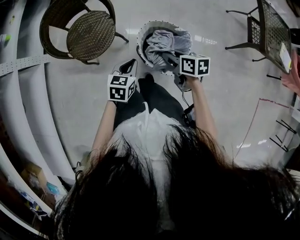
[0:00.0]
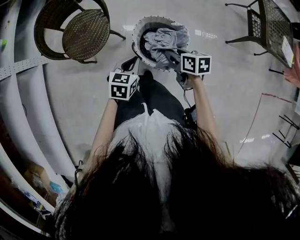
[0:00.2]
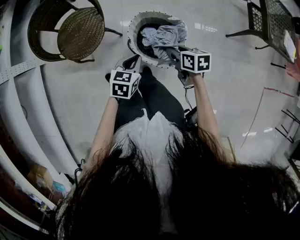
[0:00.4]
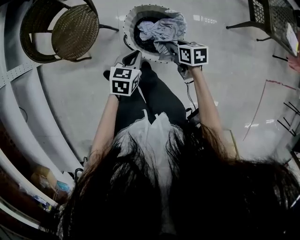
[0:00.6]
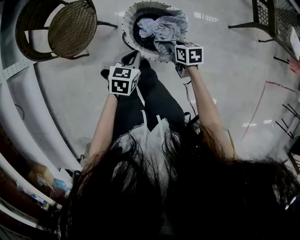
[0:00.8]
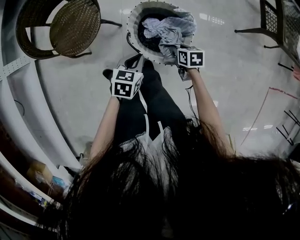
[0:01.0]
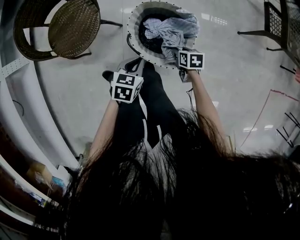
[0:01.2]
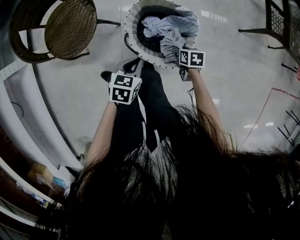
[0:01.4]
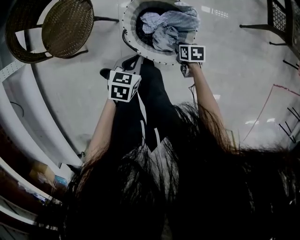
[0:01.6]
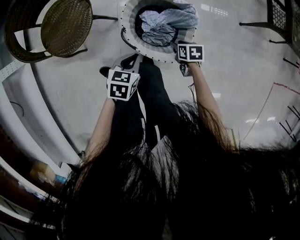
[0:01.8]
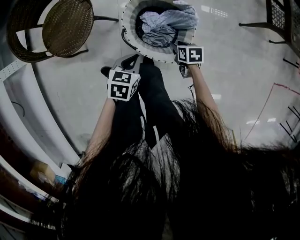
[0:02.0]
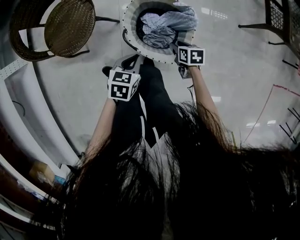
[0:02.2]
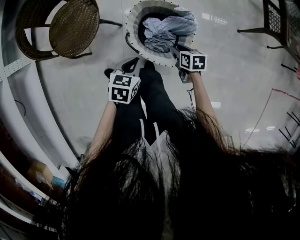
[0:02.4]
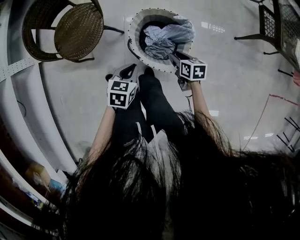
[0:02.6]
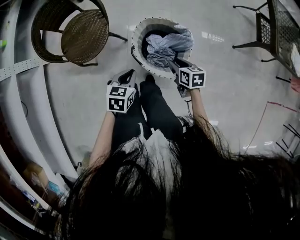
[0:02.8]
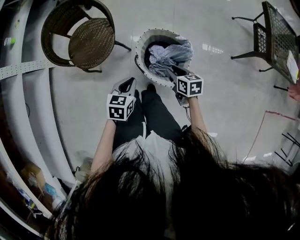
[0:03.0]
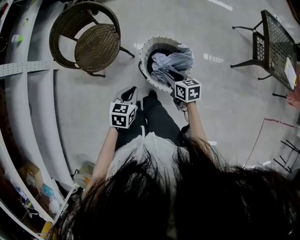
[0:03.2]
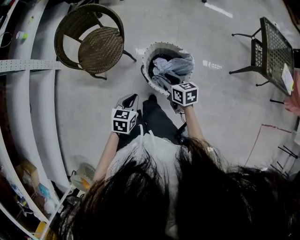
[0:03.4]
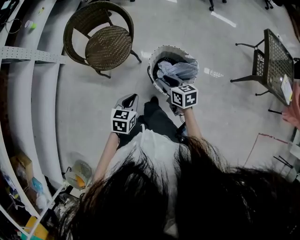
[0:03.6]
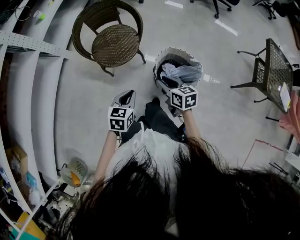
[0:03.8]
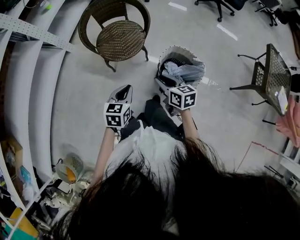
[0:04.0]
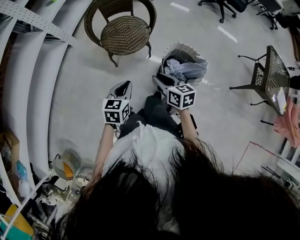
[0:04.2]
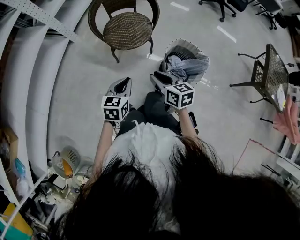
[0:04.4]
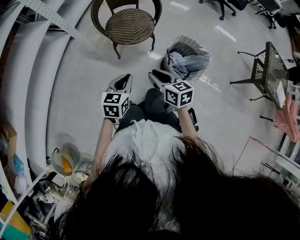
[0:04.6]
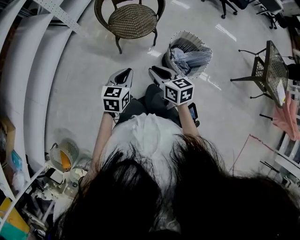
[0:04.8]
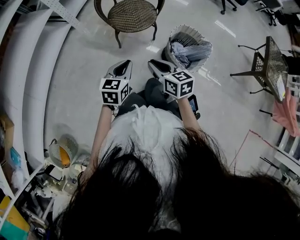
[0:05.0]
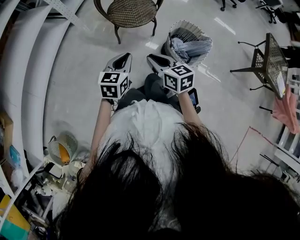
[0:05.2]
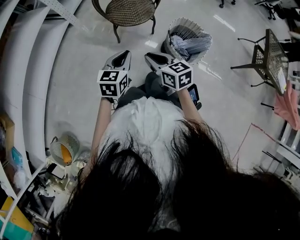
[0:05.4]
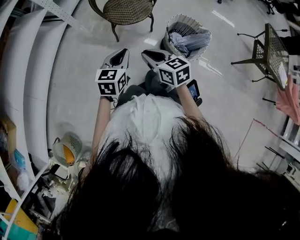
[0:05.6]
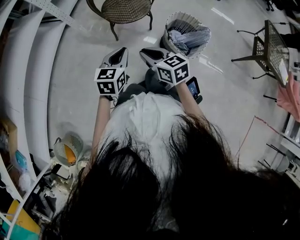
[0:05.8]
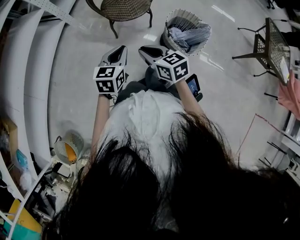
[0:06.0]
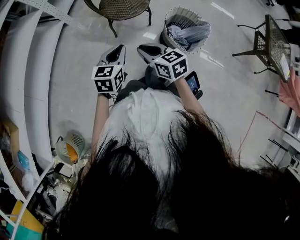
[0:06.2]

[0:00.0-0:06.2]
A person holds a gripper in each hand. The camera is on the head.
0:00.0 to 0:01.6: The right gripper is displaced downward and to the right by some 35 cm, and rotates roughly 30 degrees. The left gripper shifts some 20 cm downward and to the right.
0:01.6 to 0:03.2: The left gripper goes approximately 15 cm upward, while the right gripper is displaced upward by some 25 cm, and changes its angle by roughly 30 degrees.
0:03.2 to 0:04.6: The left gripper heads to the left, backward and upward, covering some 30 cm, and rotates some 20 degrees, while the right gripper heads to the left and upward, covering some 35 cm, and changes its angle by about 20 degrees.
0:04.6 to 0:06.2: The right gripper moves to the left, approximately 5 cm.

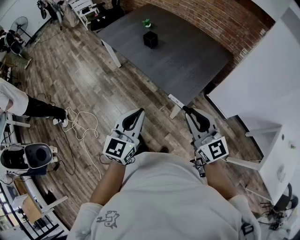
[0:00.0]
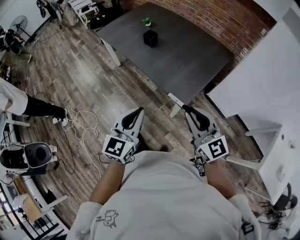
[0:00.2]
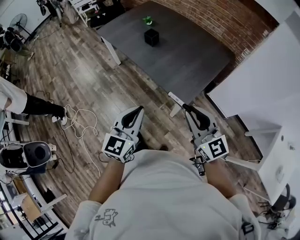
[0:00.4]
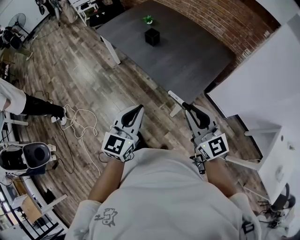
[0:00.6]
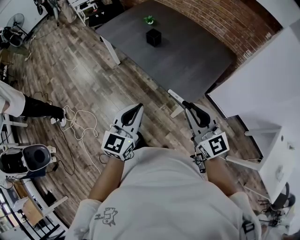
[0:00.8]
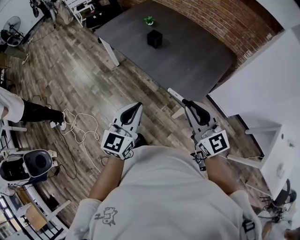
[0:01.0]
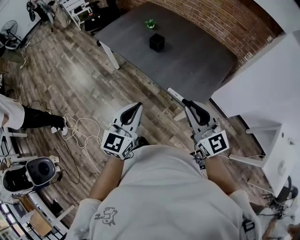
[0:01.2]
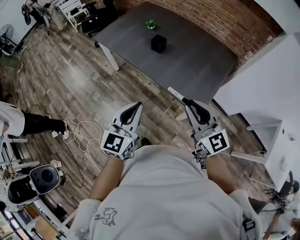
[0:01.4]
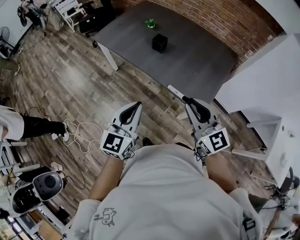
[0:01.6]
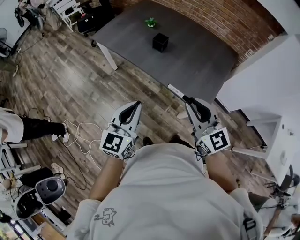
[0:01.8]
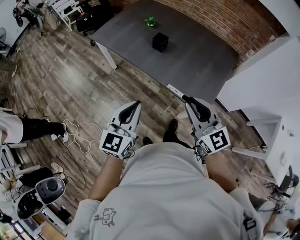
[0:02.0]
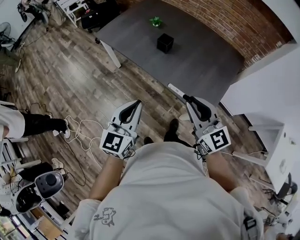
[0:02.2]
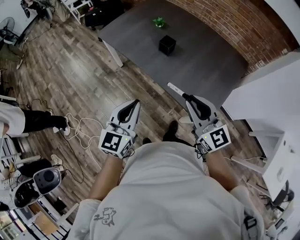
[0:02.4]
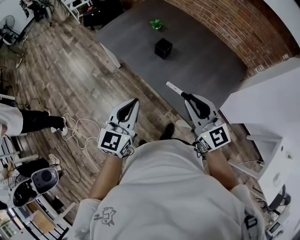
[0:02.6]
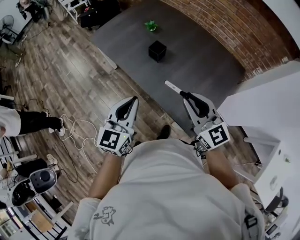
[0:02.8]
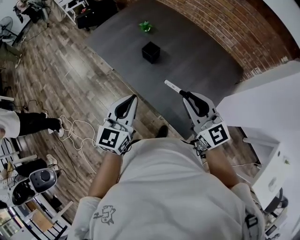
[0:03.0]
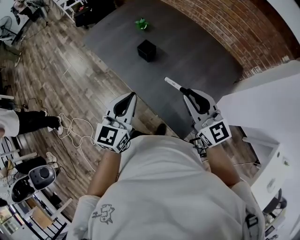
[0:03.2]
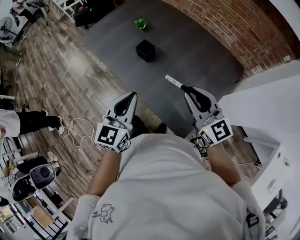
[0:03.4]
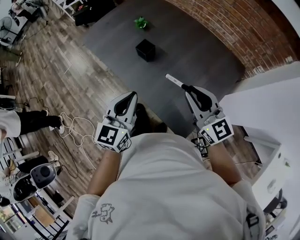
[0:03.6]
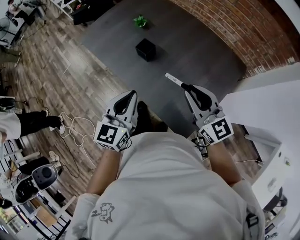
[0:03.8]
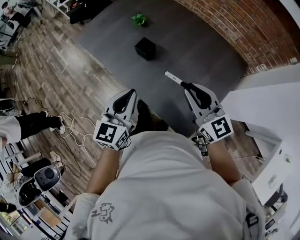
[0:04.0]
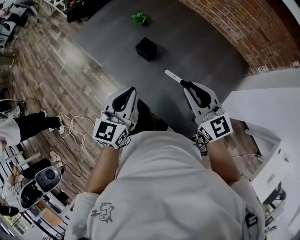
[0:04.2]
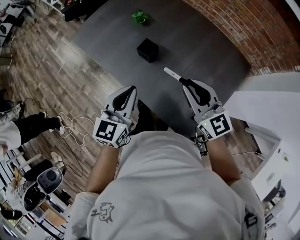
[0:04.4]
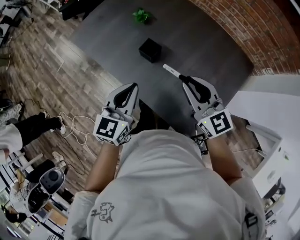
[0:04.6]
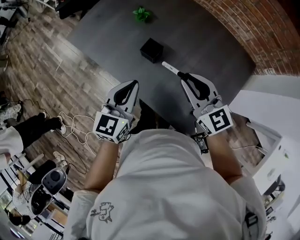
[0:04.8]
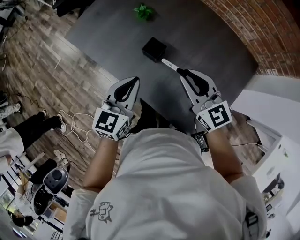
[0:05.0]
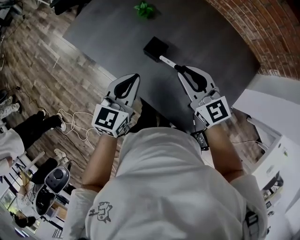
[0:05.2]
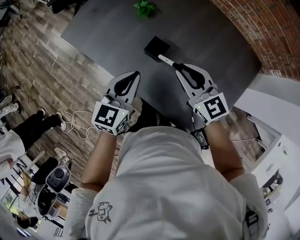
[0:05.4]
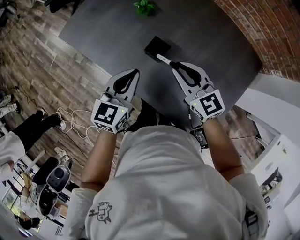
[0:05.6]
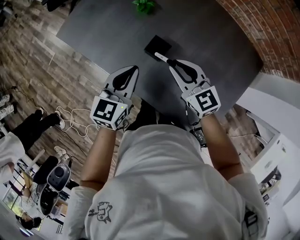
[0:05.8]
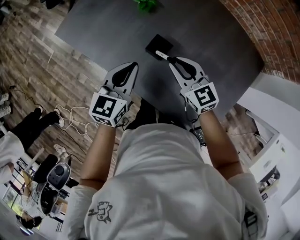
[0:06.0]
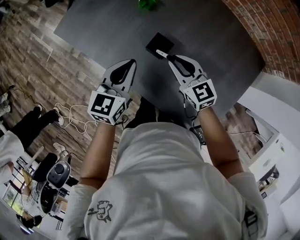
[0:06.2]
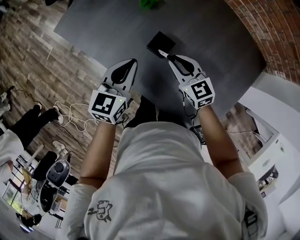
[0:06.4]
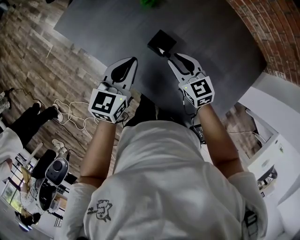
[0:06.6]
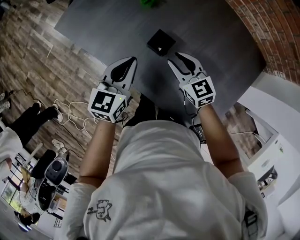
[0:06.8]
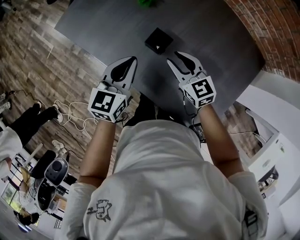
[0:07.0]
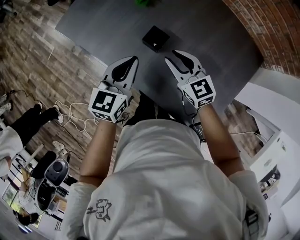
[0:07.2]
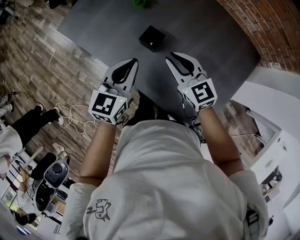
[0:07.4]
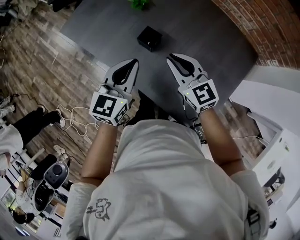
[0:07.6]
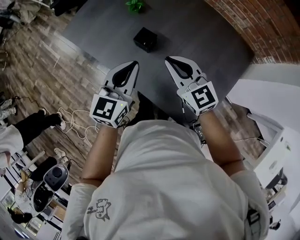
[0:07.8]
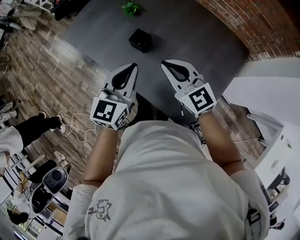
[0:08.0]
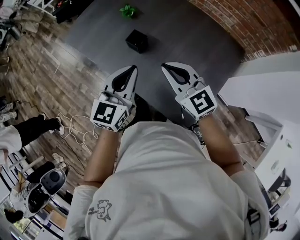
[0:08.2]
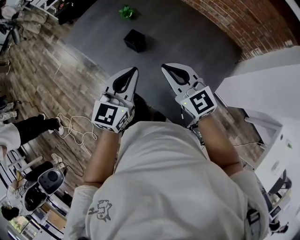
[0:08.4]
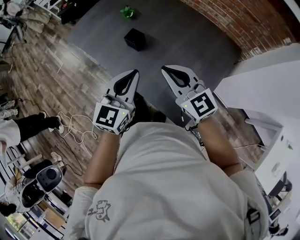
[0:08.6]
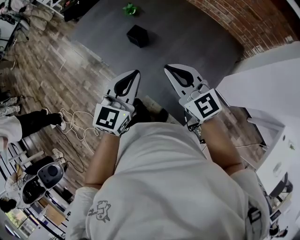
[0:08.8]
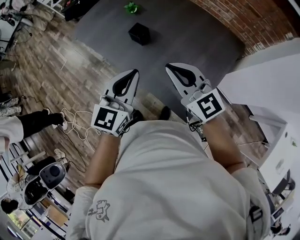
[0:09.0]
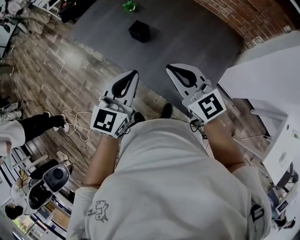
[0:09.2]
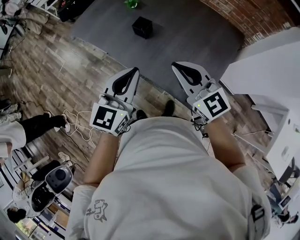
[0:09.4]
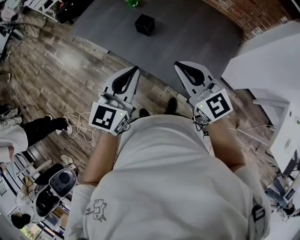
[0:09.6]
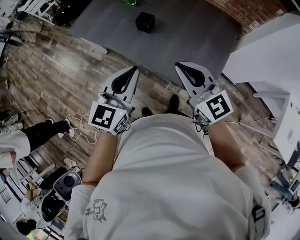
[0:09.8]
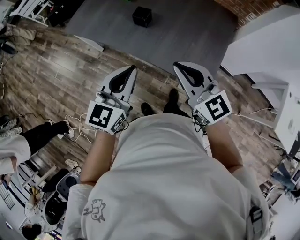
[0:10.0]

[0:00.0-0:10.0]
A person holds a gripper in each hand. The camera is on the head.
0:00.0 to 0:01.4: The grippers both shift to the left and forward by some 20 cm.
0:01.4 to 0:02.8: Both grippers move forward, some 15 cm.
0:02.8 to 0:04.2: Both grippers move forward and to the right, approximately 15 cm.
0:04.2 to 0:05.8: The right gripper moves forward, downward and to the left, some 25 cm, while the left gripper travels forward and downward by about 20 cm.
0:05.8 to 0:07.2: The right gripper goes downward and returns, roughly 10 cm each way.
0:07.2 to 0:08.6: The right gripper heads backward and upward, covering roughly 25 cm, and closes up, while the left gripper shifts some 25 cm backward, upward and to the right.
0:08.6 to 0:10.0: The right gripper moves backward and to the left, approximately 20 cm, while the left gripper travels to the left and backward by approximately 20 cm.

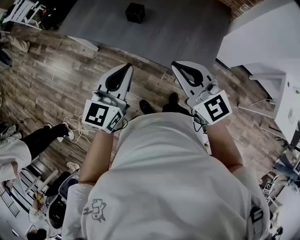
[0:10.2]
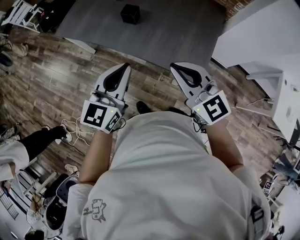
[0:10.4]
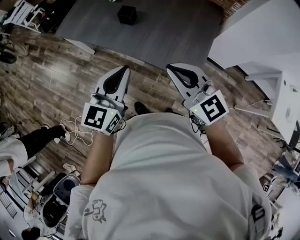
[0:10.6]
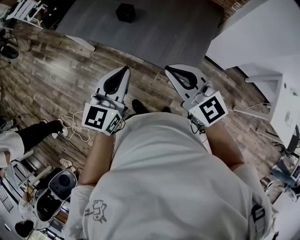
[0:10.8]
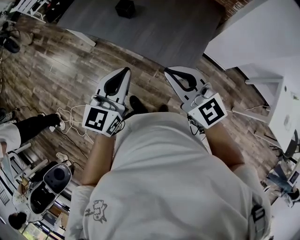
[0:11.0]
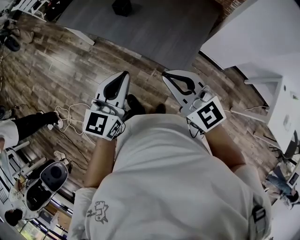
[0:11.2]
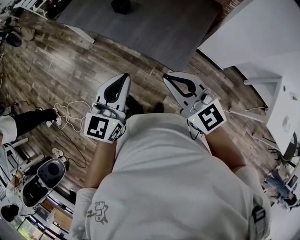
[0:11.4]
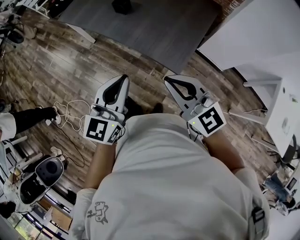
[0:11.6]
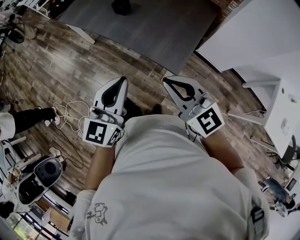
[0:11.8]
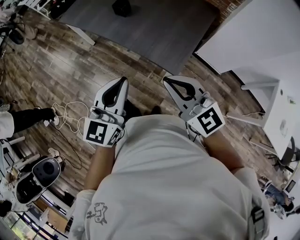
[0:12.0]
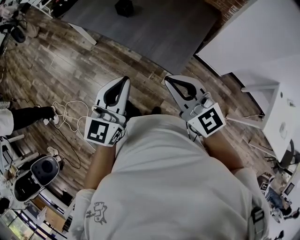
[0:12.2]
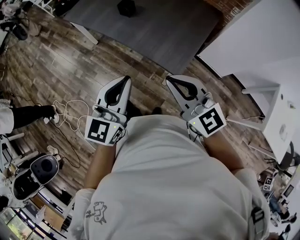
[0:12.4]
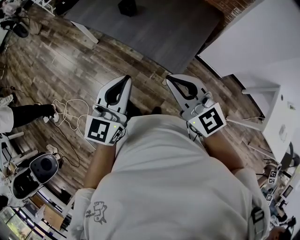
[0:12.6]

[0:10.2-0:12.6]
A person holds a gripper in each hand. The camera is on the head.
0:10.2 to 0:11.4: Both grippers move backward and to the right, approximately 20 cm.
0:11.4 to 0:12.6: There are only small adjustments of the grippers.

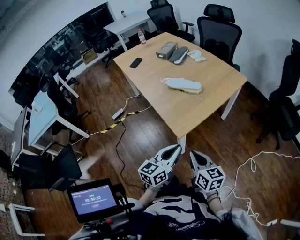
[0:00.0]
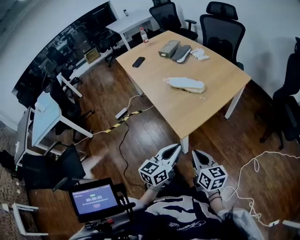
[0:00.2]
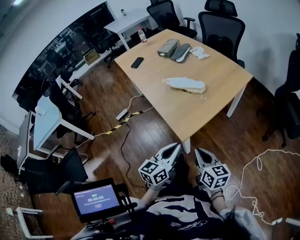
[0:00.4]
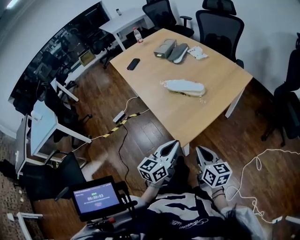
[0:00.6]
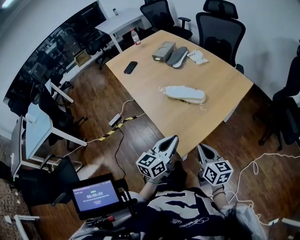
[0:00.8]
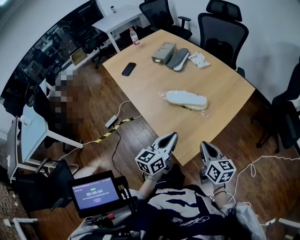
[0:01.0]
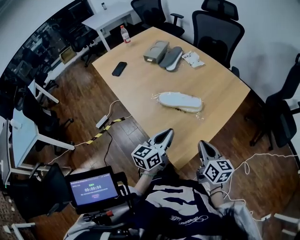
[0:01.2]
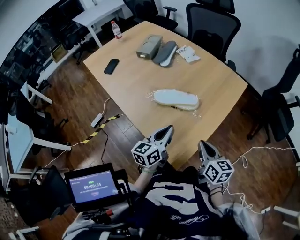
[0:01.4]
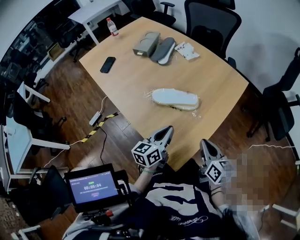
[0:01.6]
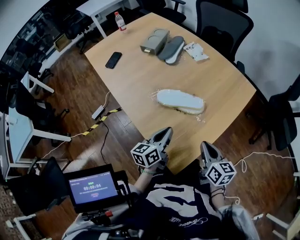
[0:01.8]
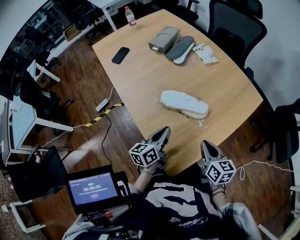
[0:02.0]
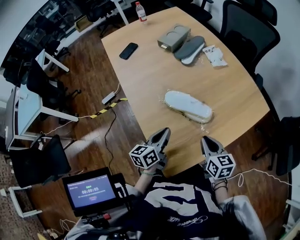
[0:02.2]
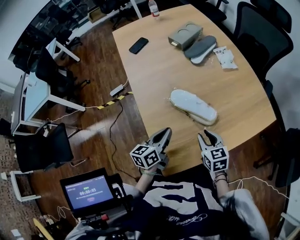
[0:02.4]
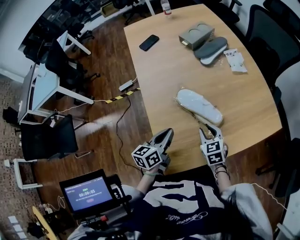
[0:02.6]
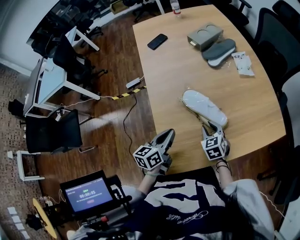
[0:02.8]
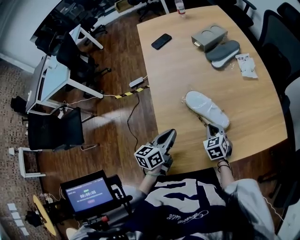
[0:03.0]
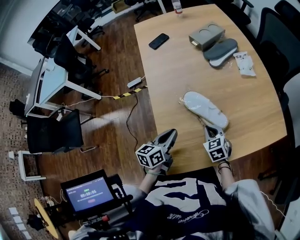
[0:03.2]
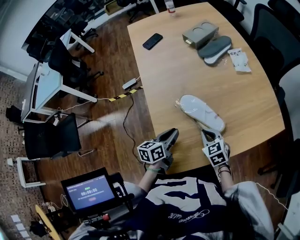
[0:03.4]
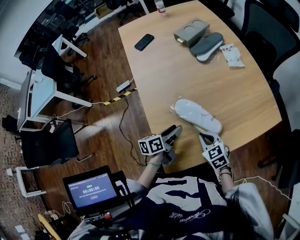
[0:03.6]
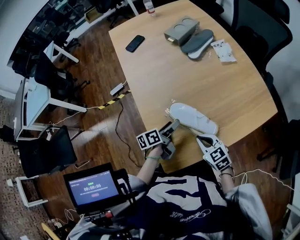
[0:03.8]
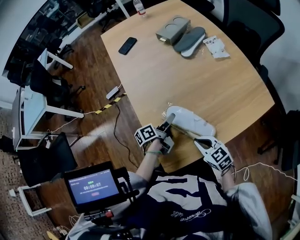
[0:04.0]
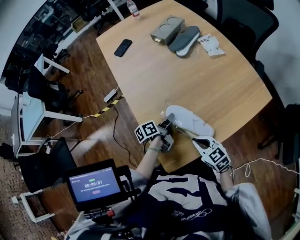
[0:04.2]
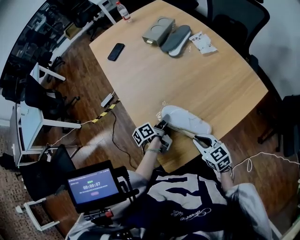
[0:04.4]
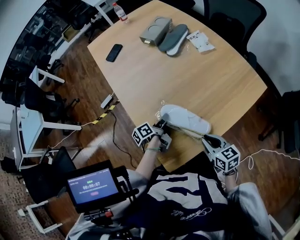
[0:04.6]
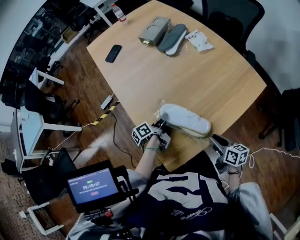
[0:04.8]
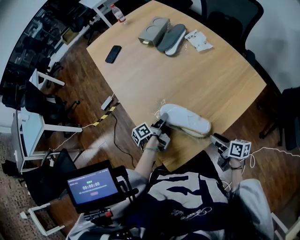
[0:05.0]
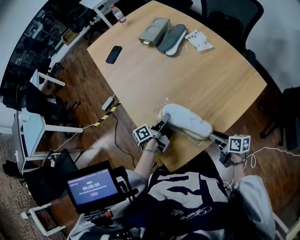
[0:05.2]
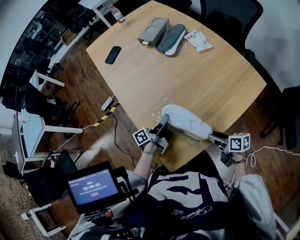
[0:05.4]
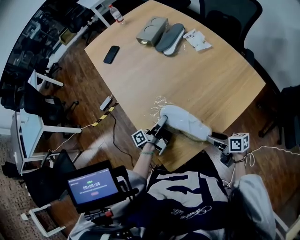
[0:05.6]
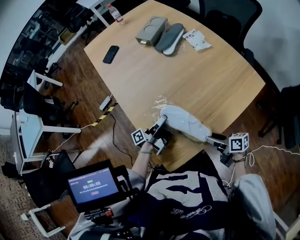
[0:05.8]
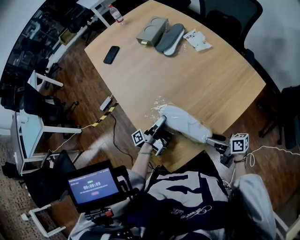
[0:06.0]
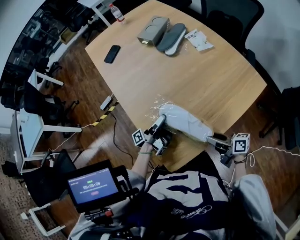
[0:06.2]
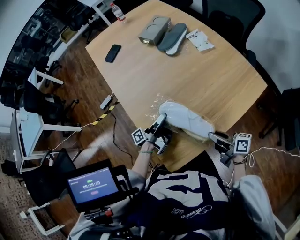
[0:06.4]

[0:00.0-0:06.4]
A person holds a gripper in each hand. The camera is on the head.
0:00.0 to 0:01.6: Both grippers travel together forward, roughly 30 cm.
0:01.6 to 0:03.2: The right gripper shifts by about 20 cm, changes its angle by approximately 60 degrees, and opens, then closes once more. The left gripper changes place by some 5 cm, and changes its angle by roughly 40 degrees.
0:03.2 to 0:04.8: The right gripper shifts about 20 cm backward and to the right, and rolls clockwise, seen from behind, by roughly 60 degrees. Meanwhile the left gripper shifts about 10 cm downward and forward, twists approximately 40 degrees counterclockwise, seen from behind, and opens, then closes once more.
0:04.8 to 0:06.4: The right gripper shifts by some 5 cm, and swivels about 30 degrees. The left gripper angles its fingers upward, by about 30 degrees.
